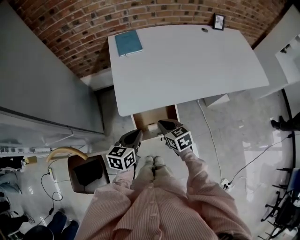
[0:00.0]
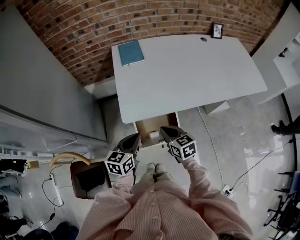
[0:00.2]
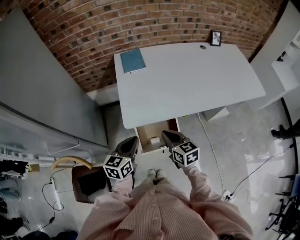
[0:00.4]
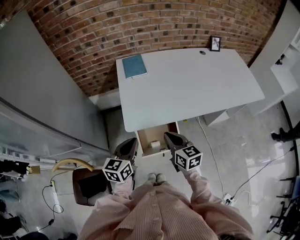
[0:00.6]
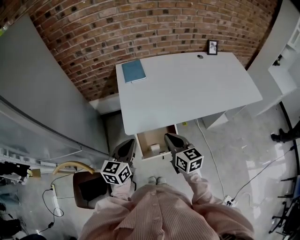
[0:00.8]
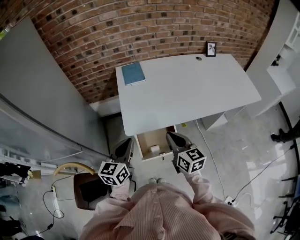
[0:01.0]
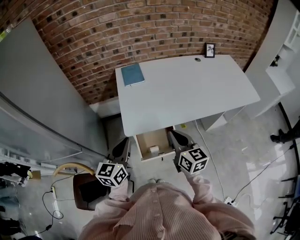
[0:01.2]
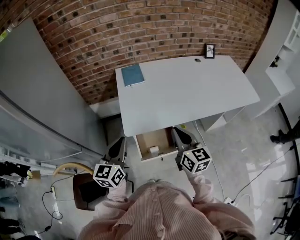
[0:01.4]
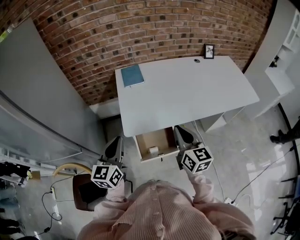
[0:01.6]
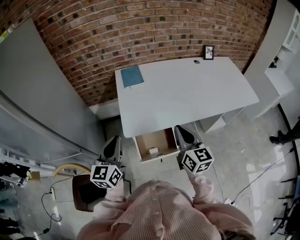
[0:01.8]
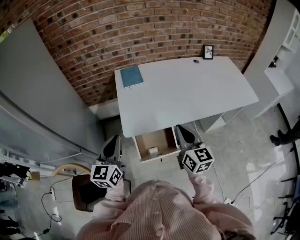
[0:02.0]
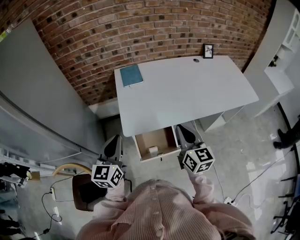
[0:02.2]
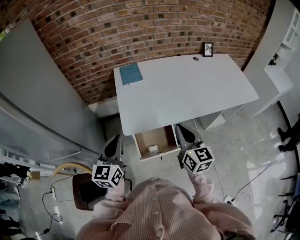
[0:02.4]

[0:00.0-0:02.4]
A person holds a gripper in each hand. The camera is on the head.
0.0 to 1.2 s: The two grippers go approximately 20 cm upward. The right gripper rotates some 30 degrees; the left gripper rotates some 20 degrees.
1.2 to 2.4 s: The grippers stay close to where they were, moving slightly.

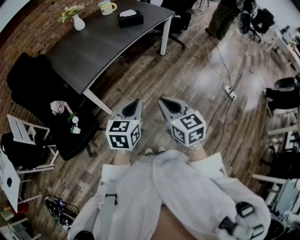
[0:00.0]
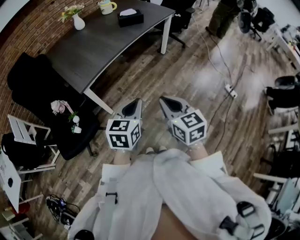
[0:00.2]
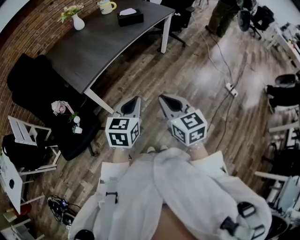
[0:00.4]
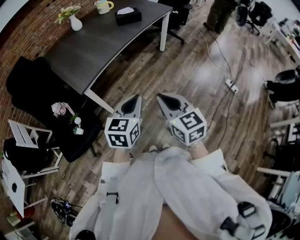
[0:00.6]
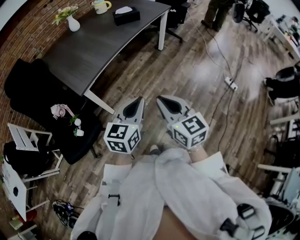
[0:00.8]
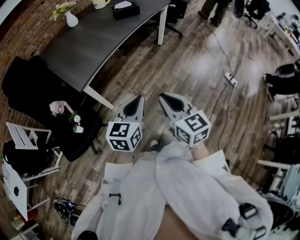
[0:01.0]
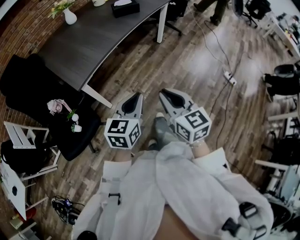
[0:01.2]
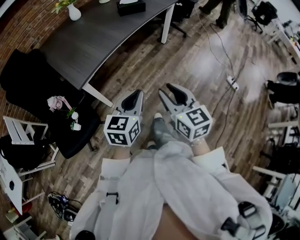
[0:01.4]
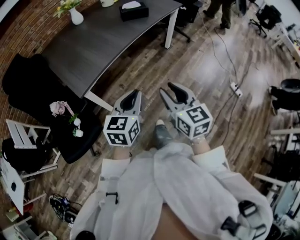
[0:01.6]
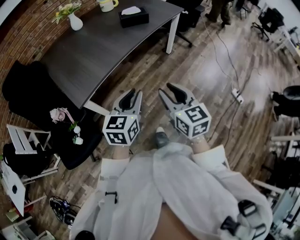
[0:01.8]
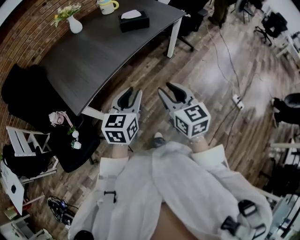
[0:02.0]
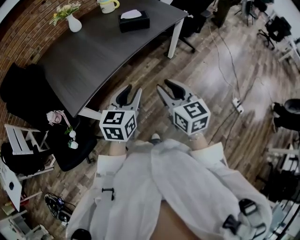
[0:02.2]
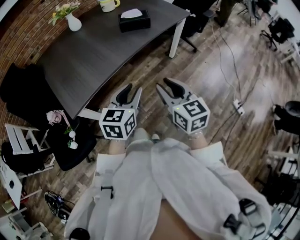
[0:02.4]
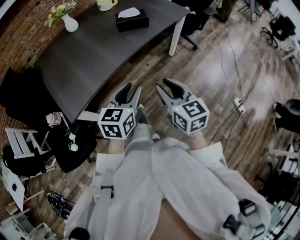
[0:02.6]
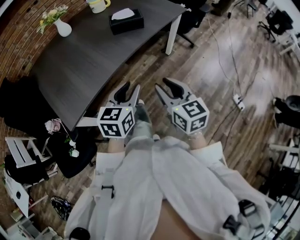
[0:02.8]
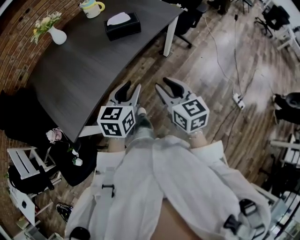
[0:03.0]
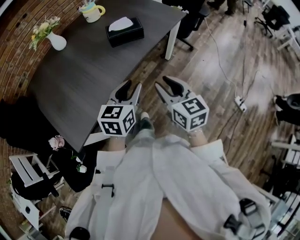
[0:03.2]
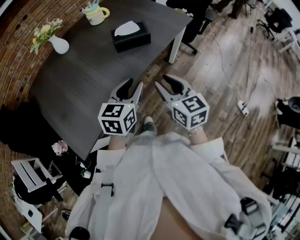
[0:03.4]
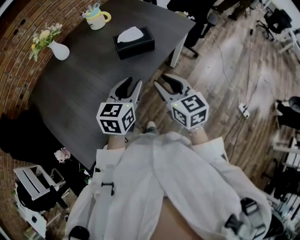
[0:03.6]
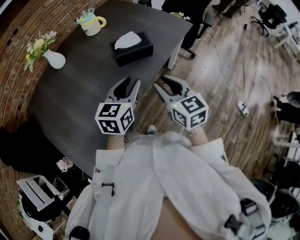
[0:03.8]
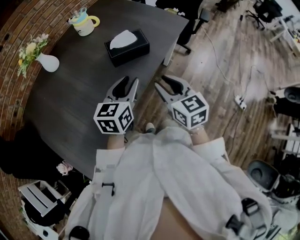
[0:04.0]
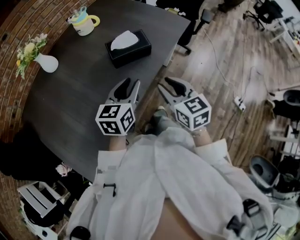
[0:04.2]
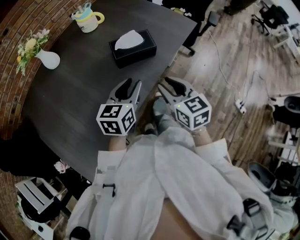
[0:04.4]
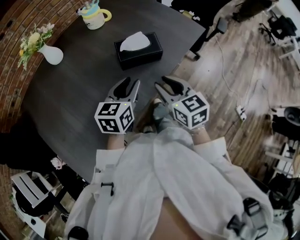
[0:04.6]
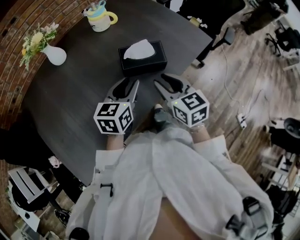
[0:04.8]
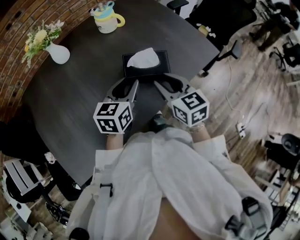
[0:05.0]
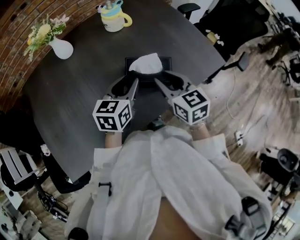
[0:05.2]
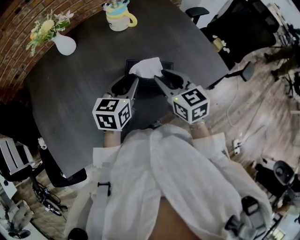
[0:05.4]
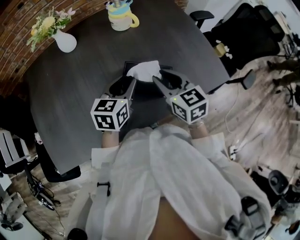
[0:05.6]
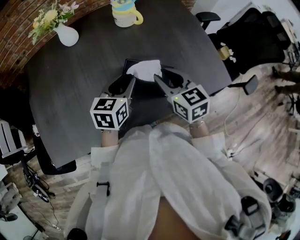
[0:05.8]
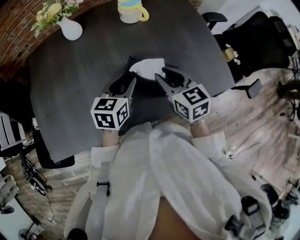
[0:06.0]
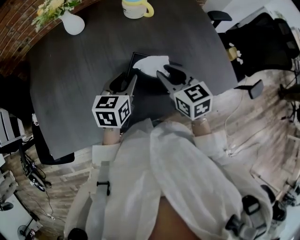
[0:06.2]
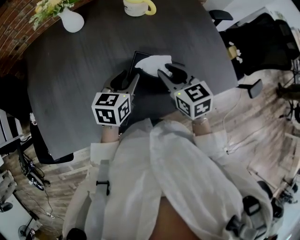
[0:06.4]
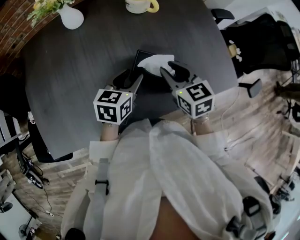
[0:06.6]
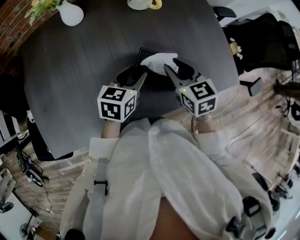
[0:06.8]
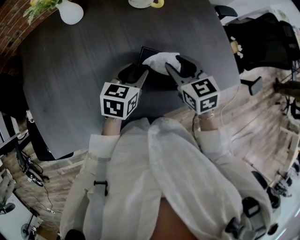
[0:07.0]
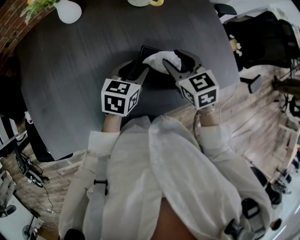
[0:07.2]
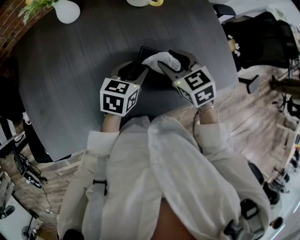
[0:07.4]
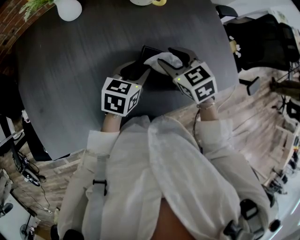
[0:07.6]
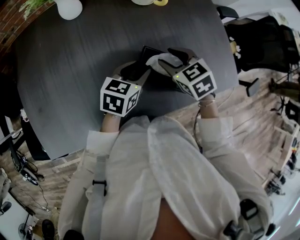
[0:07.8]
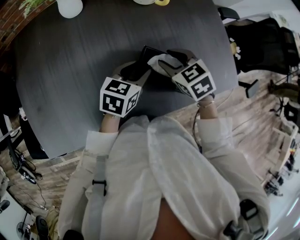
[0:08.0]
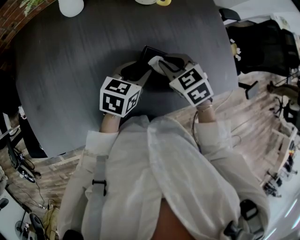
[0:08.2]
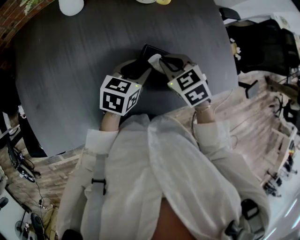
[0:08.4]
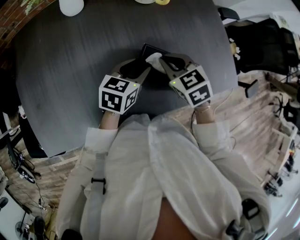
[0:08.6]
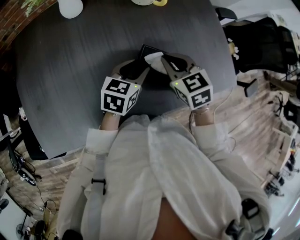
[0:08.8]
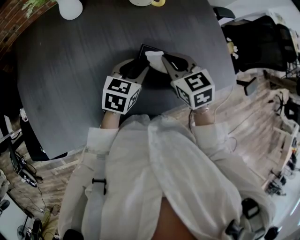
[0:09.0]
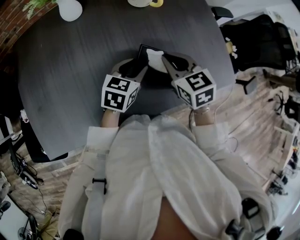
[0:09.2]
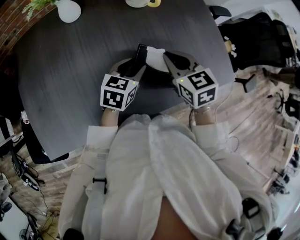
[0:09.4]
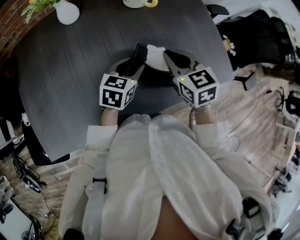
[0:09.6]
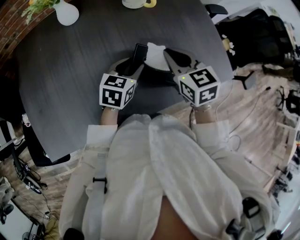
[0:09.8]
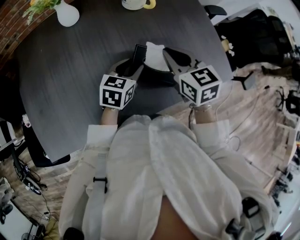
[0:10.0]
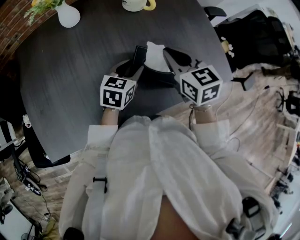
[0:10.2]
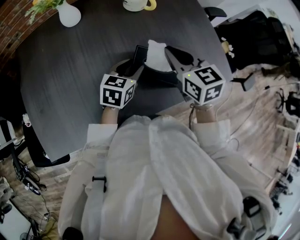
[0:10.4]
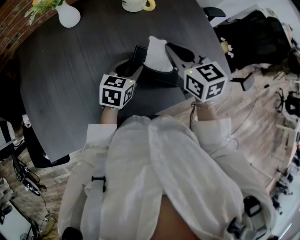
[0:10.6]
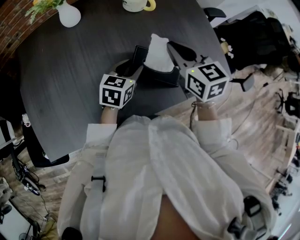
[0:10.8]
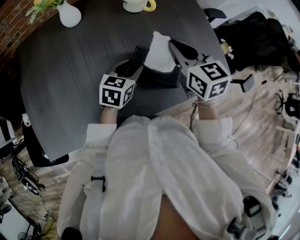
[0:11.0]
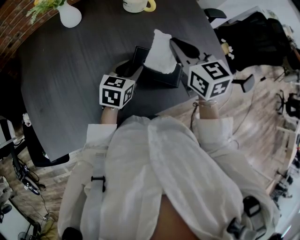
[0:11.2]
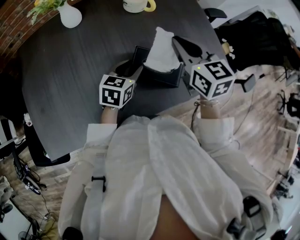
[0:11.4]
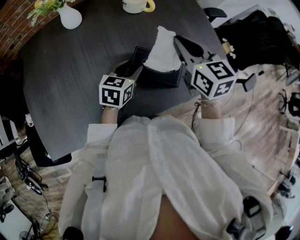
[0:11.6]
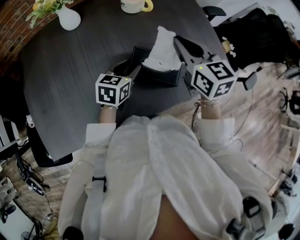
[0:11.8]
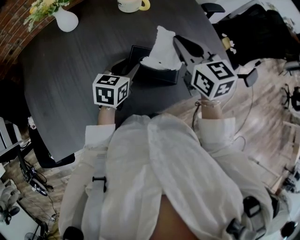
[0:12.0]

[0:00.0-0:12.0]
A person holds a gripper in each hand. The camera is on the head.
0.0 to 1.6 s: The two grippers go some 10 cm forward. The right gripper opens up.
1.6 to 3.0 s: Both grippers travel together forward, roughly 30 cm. The left gripper opens its fingers.
3.0 to 4.4 s: Both grippers travel together forward, about 25 cm.
4.4 to 6.0 s: The right gripper ends up approximately 25 cm from where it was, and rotates some 40 degrees. Meanwhile the left gripper moves some 20 cm, and changes its angle by about 30 degrees.
6.0 to 7.6 s: The right gripper is displaced forward by approximately 5 cm, and turns by roughly 20 degrees. The left gripper changes place by approximately 5 cm.
7.6 to 9.0 s: The right gripper closes its fingers.
9.0 to 10.4 s: The right gripper travels upward by roughly 5 cm.
10.4 to 12.0 s: The right gripper moves approximately 5 cm.

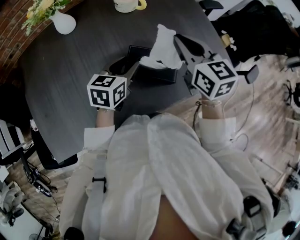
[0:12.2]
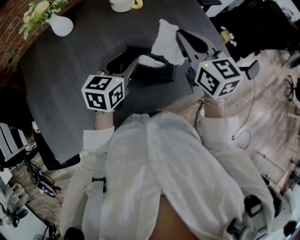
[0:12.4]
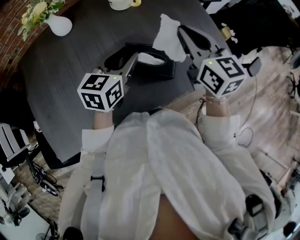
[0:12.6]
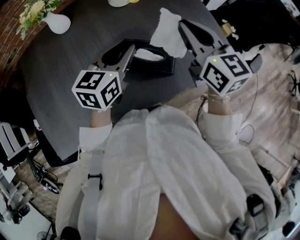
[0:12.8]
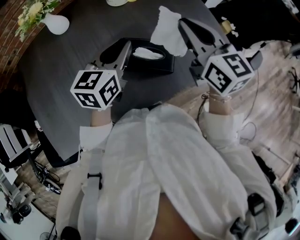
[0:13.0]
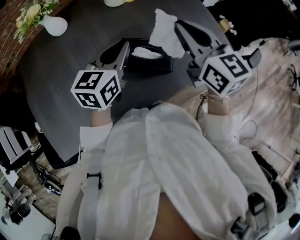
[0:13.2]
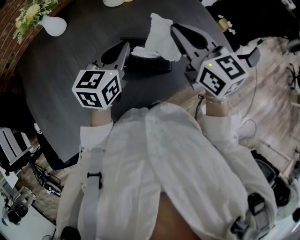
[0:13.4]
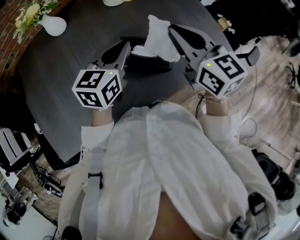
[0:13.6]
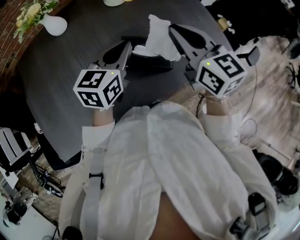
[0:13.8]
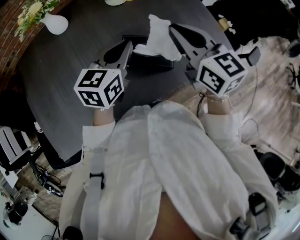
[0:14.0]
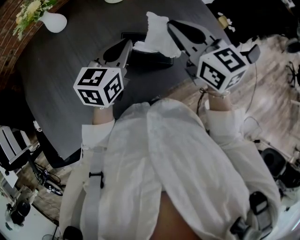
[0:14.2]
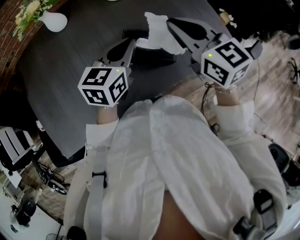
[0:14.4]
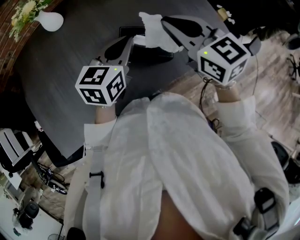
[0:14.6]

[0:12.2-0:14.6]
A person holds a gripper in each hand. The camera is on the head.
12.2 to 13.4 s: The left gripper shifts some 5 cm upward, and closes.
13.4 to 14.6 s: The grippers move only a little.

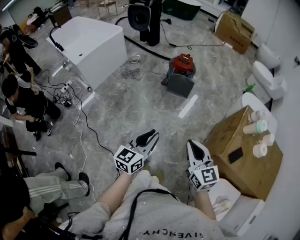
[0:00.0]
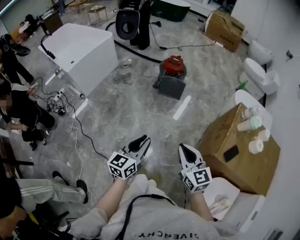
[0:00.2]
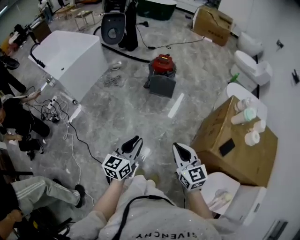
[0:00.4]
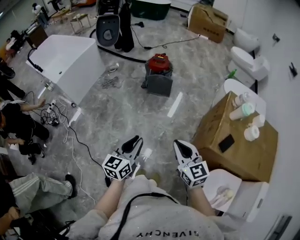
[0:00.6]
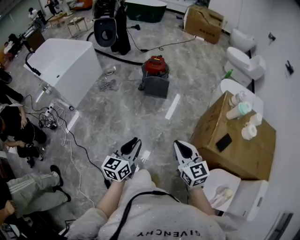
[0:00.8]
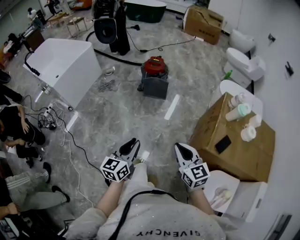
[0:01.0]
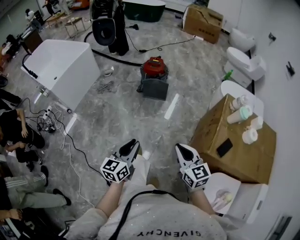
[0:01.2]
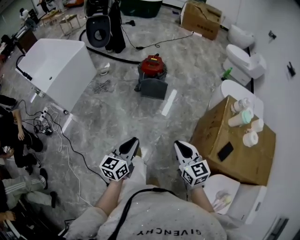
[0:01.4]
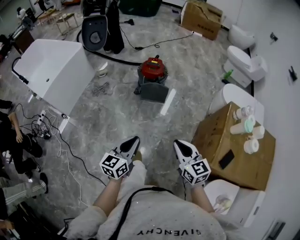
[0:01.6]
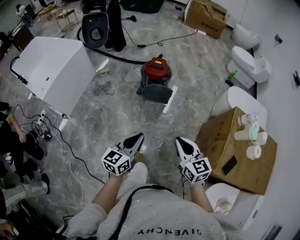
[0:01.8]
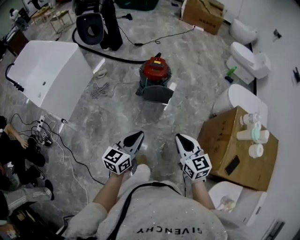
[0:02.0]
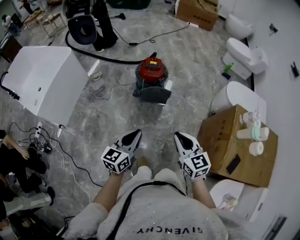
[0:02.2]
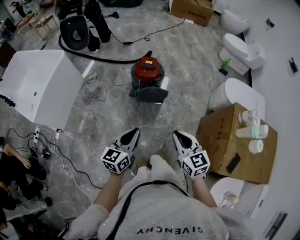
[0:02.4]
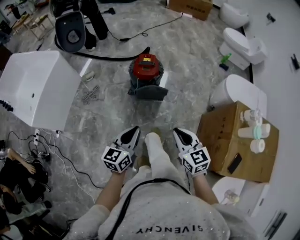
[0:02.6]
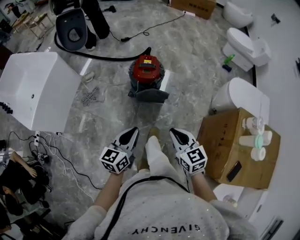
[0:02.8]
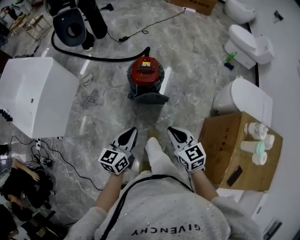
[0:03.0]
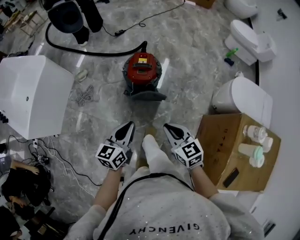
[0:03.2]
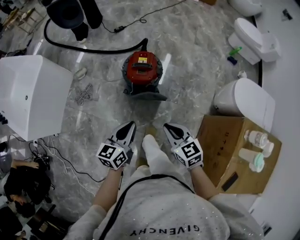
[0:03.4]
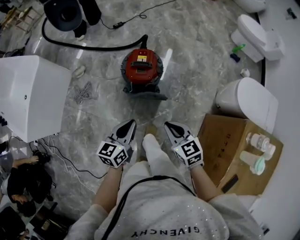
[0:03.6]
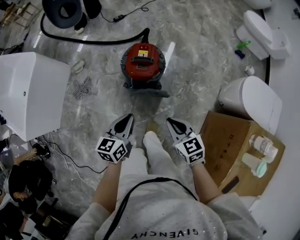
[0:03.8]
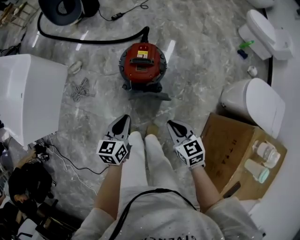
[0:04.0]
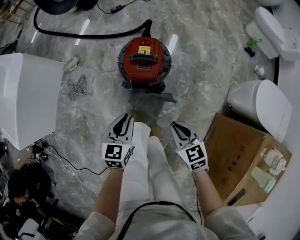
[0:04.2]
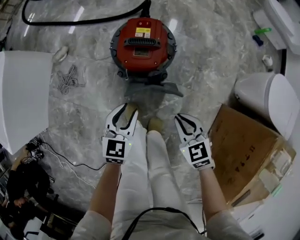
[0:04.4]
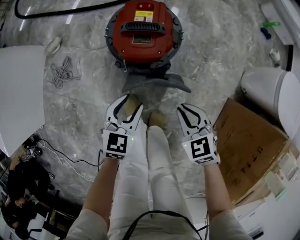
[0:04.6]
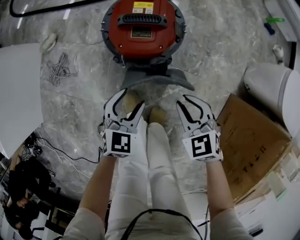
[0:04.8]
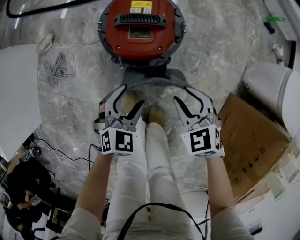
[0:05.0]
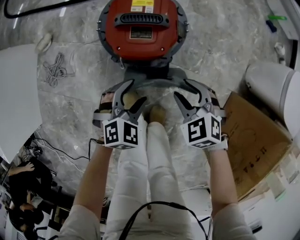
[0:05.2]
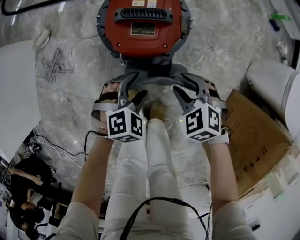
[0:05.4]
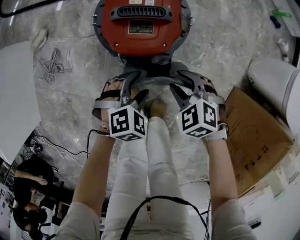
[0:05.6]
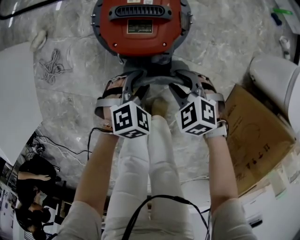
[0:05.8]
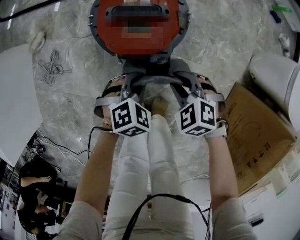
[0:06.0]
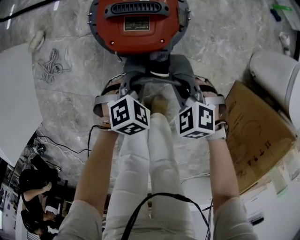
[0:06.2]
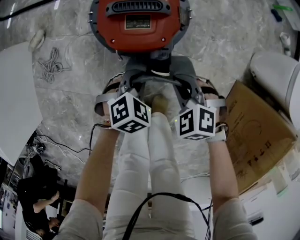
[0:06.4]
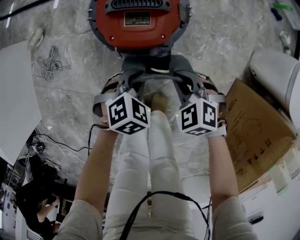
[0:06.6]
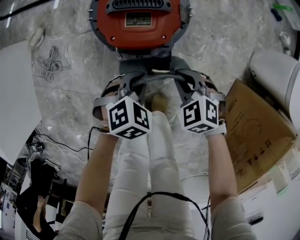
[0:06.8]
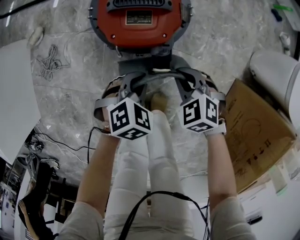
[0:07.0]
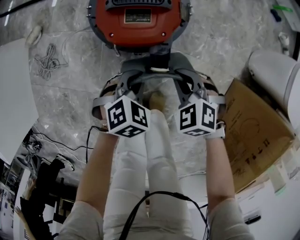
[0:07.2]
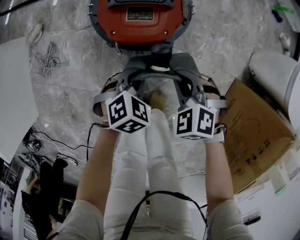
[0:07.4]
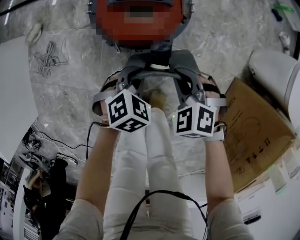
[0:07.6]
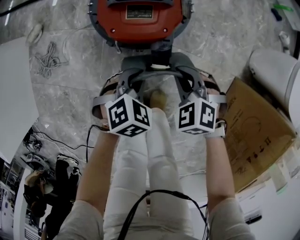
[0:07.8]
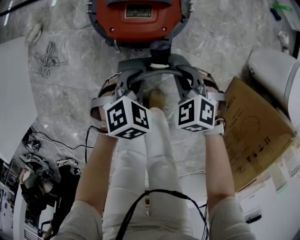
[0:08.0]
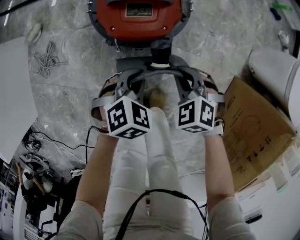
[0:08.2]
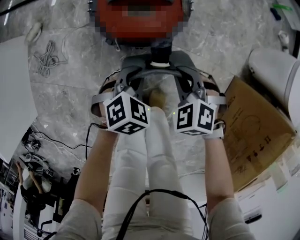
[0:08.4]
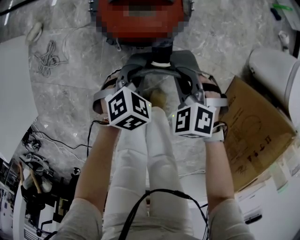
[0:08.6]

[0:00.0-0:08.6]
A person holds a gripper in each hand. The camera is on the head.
0.0 to 1.4 s: The two grippers go roughly 10 cm forward and downward.
1.4 to 2.8 s: Both grippers move forward, about 30 cm.
2.8 to 4.4 s: Both grippers move downward and forward, about 35 cm. The right gripper rotates about 20 degrees. Meanwhile the left gripper swivels approximately 30 degrees, and opens.
4.4 to 5.8 s: The left gripper heads downward, covering about 15 cm, and turns by some 50 degrees. The right gripper is displaced downward and forward by roughly 15 cm, rotates approximately 30 degrees, and opens its fingers.
5.8 to 7.2 s: The left gripper closes, while the right gripper closes.
7.2 to 8.6 s: The grippers make only small movements.
